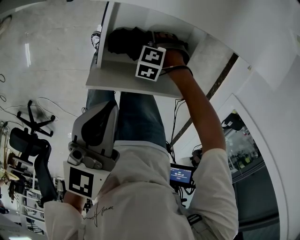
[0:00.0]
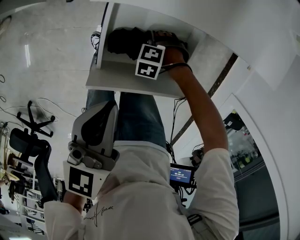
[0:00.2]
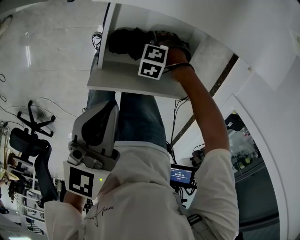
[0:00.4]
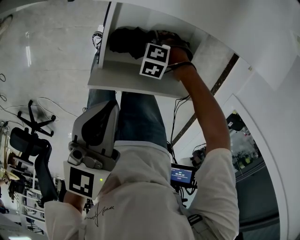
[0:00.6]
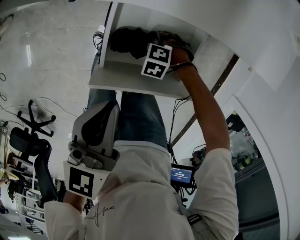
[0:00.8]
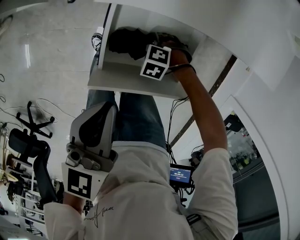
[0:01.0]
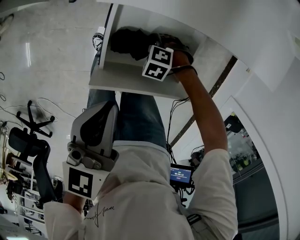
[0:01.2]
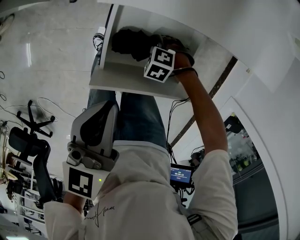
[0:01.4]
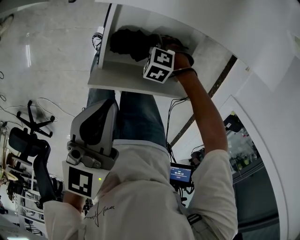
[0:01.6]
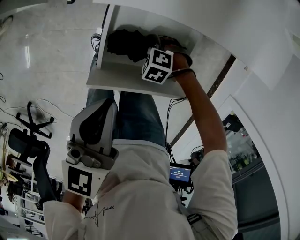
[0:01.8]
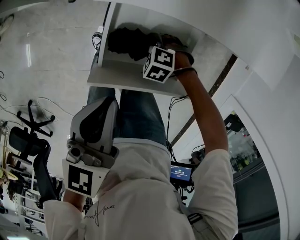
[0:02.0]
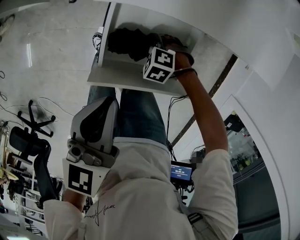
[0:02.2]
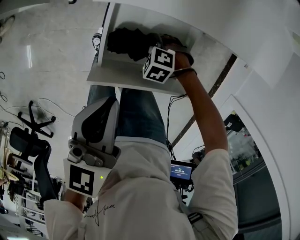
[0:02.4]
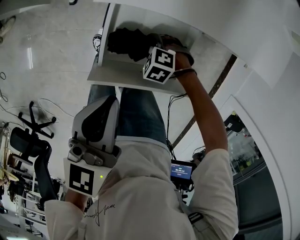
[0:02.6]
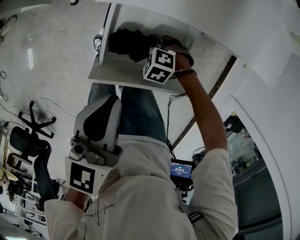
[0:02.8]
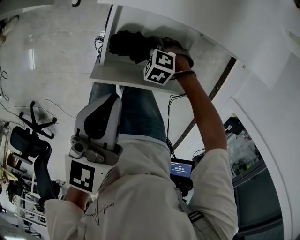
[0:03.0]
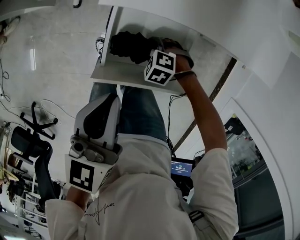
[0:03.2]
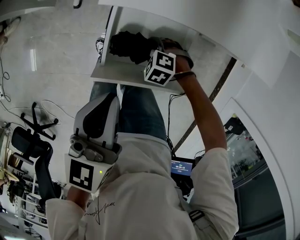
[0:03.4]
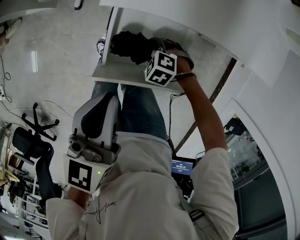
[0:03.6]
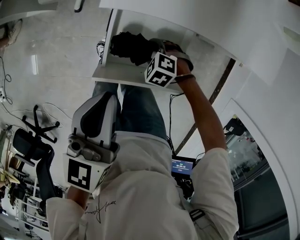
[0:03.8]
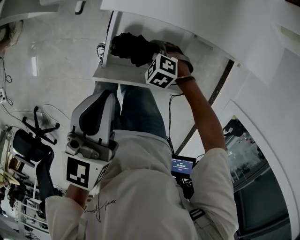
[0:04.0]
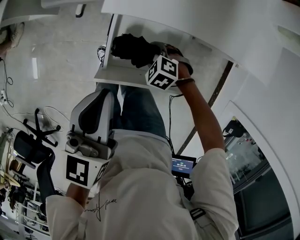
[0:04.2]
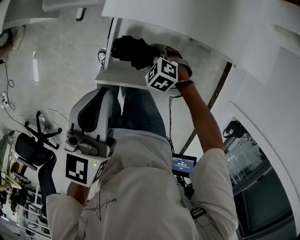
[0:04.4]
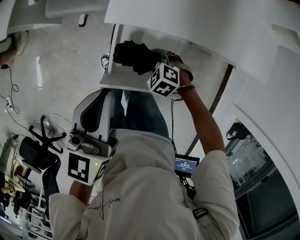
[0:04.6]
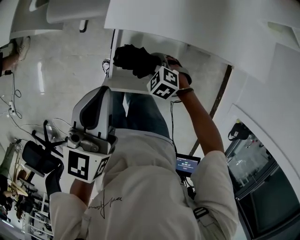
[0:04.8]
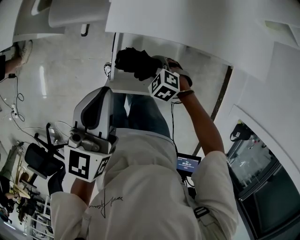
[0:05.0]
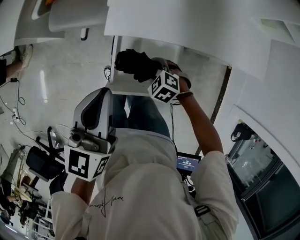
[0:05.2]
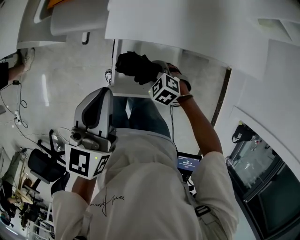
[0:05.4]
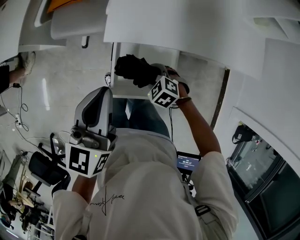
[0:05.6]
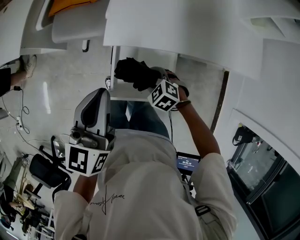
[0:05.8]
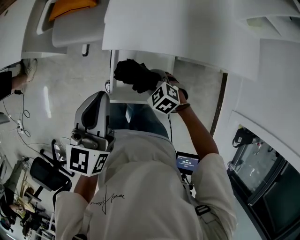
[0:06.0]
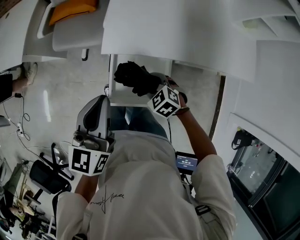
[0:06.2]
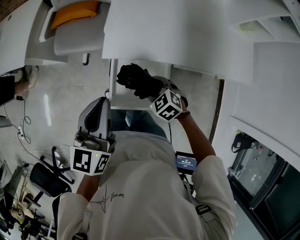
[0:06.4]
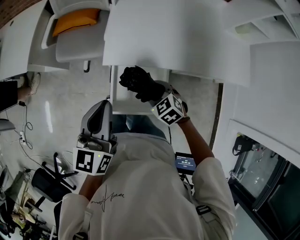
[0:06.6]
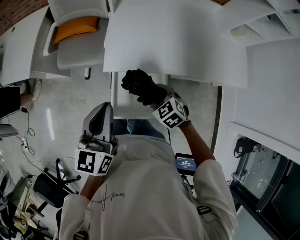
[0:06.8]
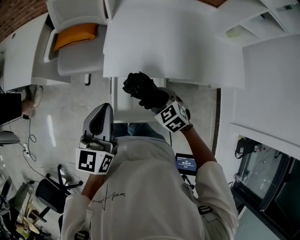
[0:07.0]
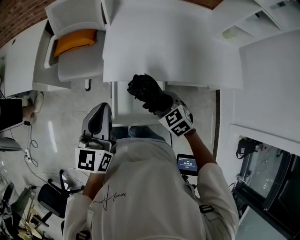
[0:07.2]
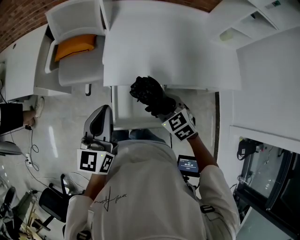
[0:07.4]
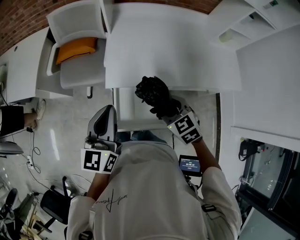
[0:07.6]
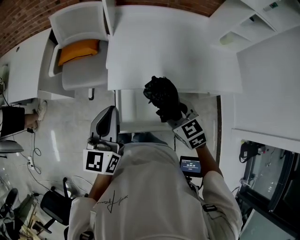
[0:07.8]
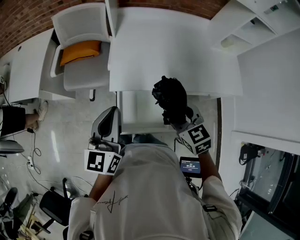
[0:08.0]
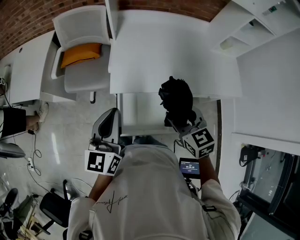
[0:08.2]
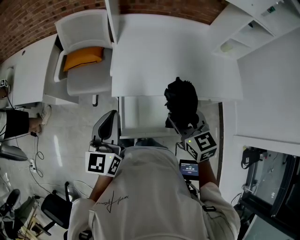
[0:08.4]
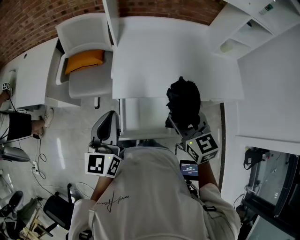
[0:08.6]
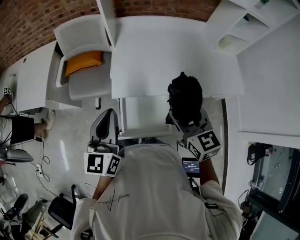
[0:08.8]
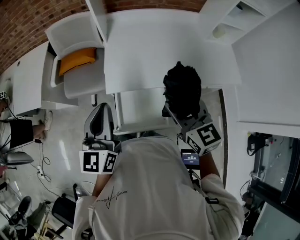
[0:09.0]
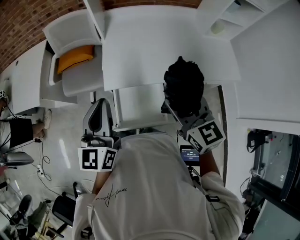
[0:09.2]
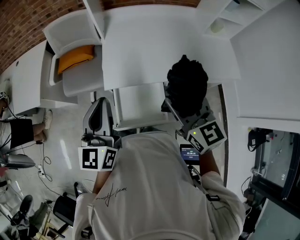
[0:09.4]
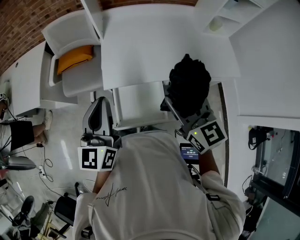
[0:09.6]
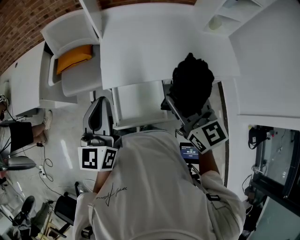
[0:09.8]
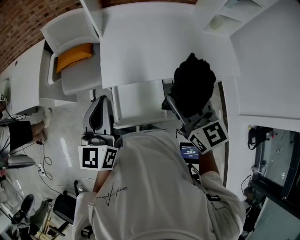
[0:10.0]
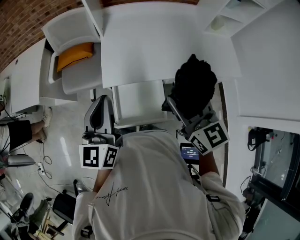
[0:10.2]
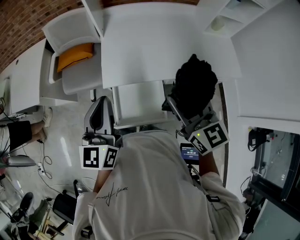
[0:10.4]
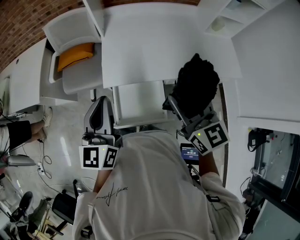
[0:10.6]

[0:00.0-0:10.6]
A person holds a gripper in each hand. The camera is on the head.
0.0 to 3.0 s: The grippers move only a little.
3.0 to 4.6 s: Both grippers travel together upward, about 5 cm.
4.6 to 6.0 s: The left gripper goes roughly 5 cm upward. The right gripper travels upward by approximately 10 cm.
6.0 to 7.6 s: The left gripper ends up about 5 cm from where it was, while the right gripper goes approximately 20 cm upward, and rotates about 30 degrees.
7.6 to 9.0 s: The right gripper is displaced upward by some 15 cm, and swivels roughly 30 degrees; the left gripper shifts some 5 cm upward.
9.0 to 10.6 s: There are only small adjustments of the grippers.

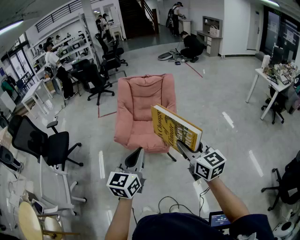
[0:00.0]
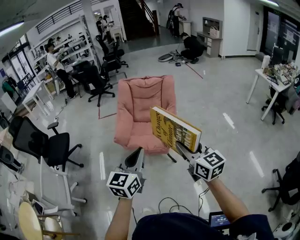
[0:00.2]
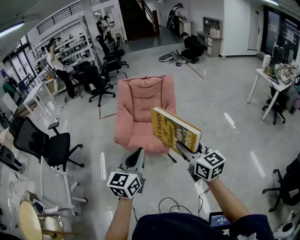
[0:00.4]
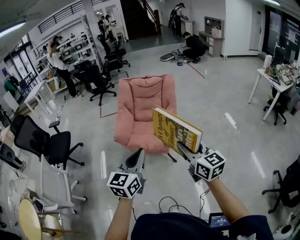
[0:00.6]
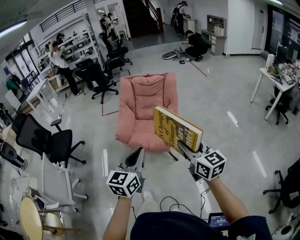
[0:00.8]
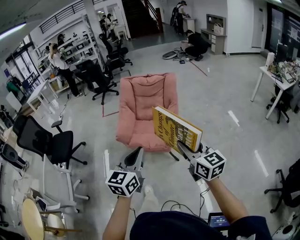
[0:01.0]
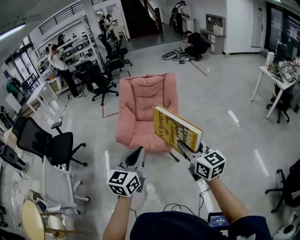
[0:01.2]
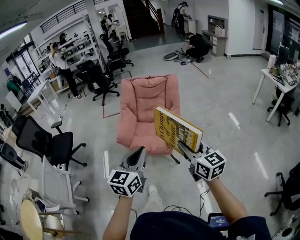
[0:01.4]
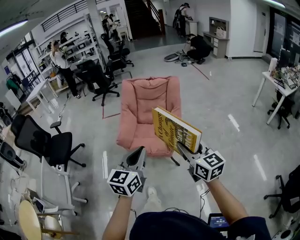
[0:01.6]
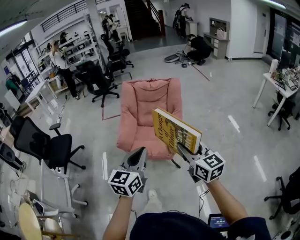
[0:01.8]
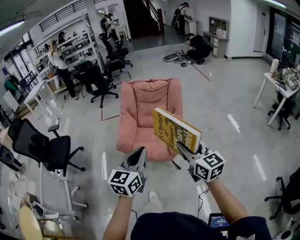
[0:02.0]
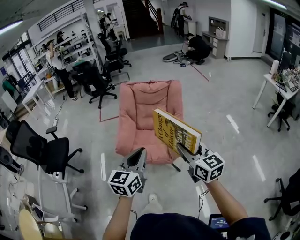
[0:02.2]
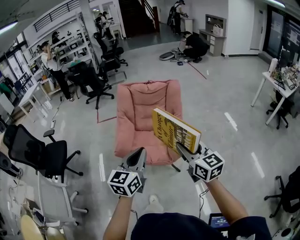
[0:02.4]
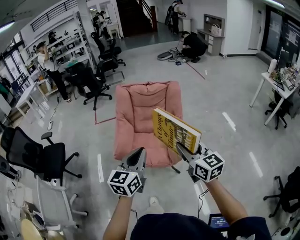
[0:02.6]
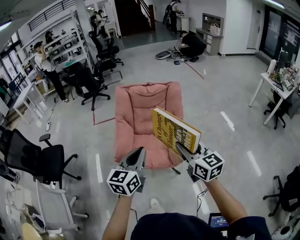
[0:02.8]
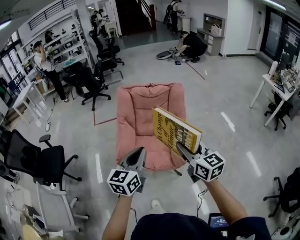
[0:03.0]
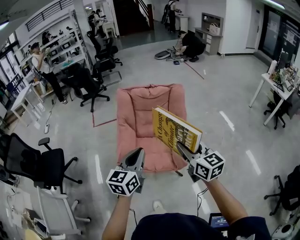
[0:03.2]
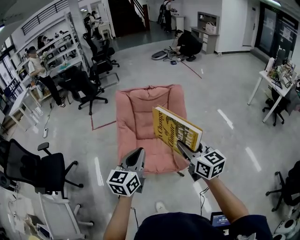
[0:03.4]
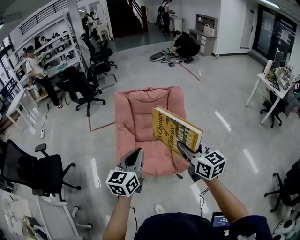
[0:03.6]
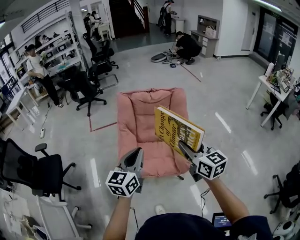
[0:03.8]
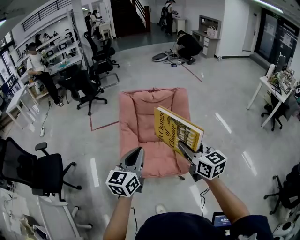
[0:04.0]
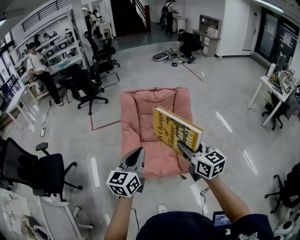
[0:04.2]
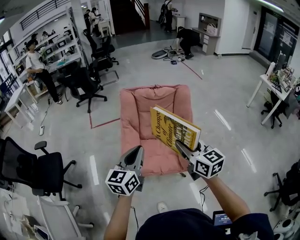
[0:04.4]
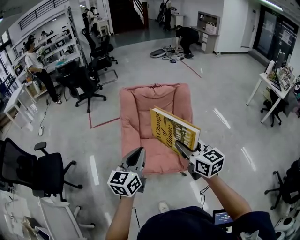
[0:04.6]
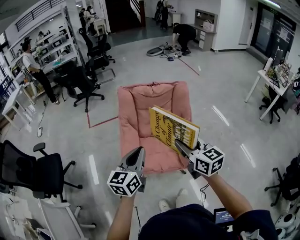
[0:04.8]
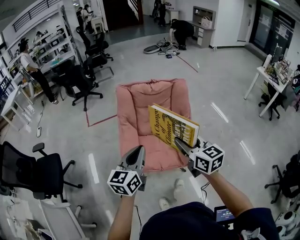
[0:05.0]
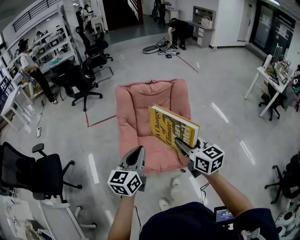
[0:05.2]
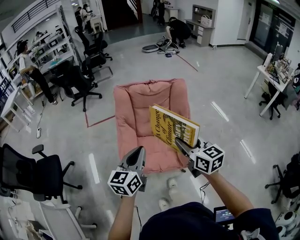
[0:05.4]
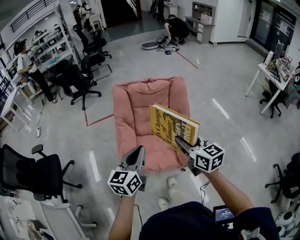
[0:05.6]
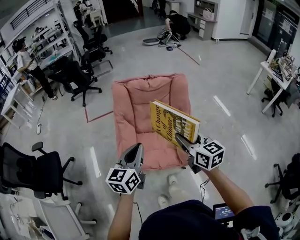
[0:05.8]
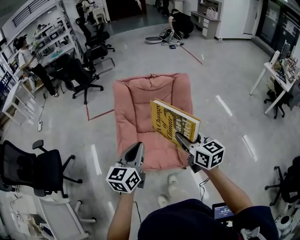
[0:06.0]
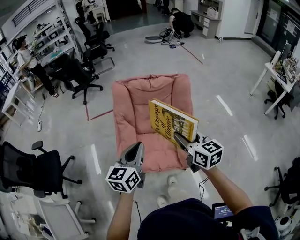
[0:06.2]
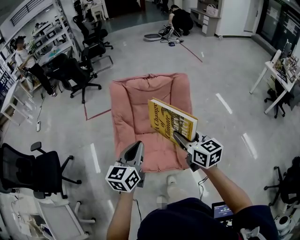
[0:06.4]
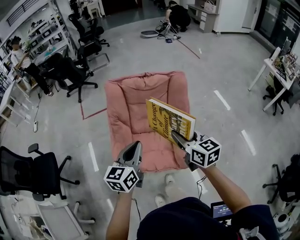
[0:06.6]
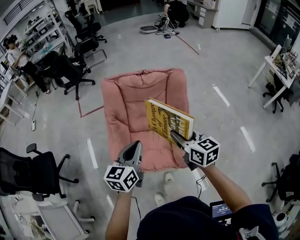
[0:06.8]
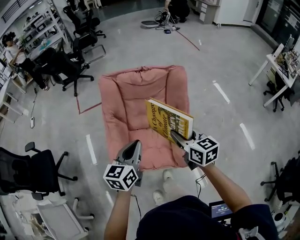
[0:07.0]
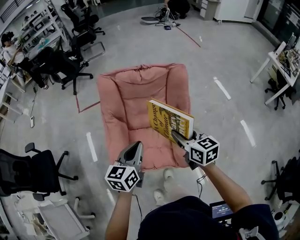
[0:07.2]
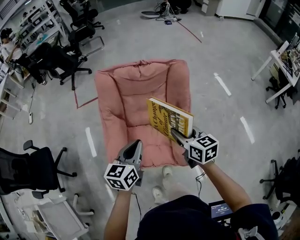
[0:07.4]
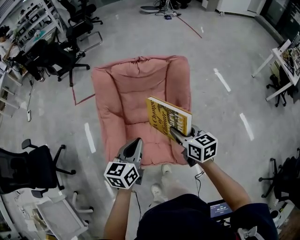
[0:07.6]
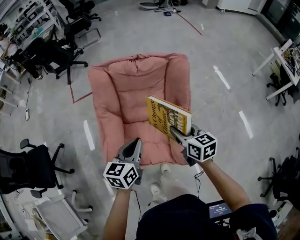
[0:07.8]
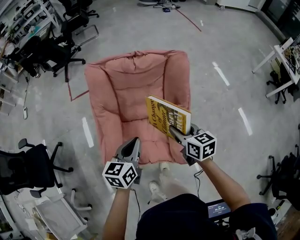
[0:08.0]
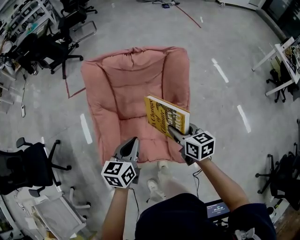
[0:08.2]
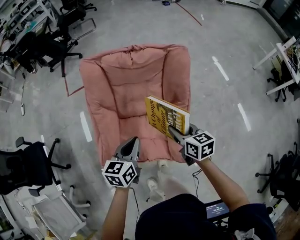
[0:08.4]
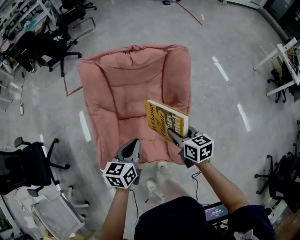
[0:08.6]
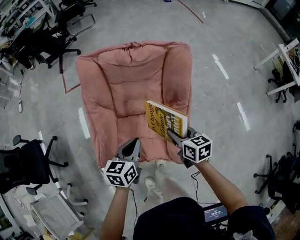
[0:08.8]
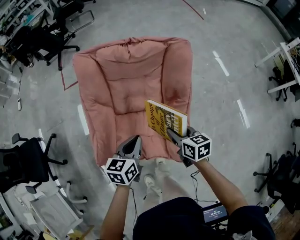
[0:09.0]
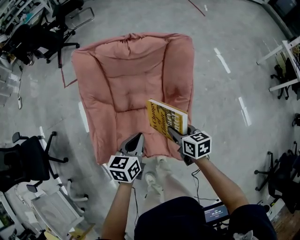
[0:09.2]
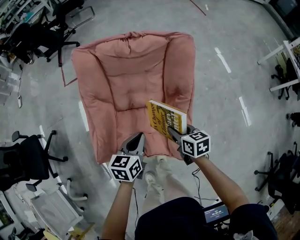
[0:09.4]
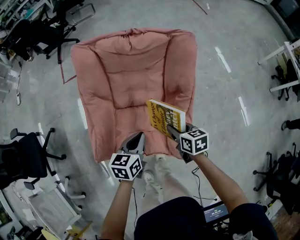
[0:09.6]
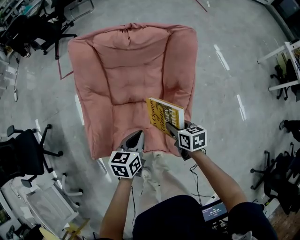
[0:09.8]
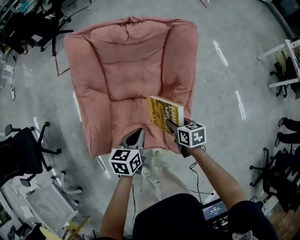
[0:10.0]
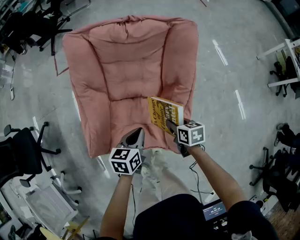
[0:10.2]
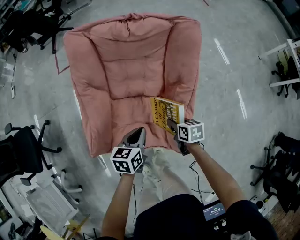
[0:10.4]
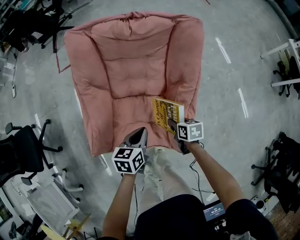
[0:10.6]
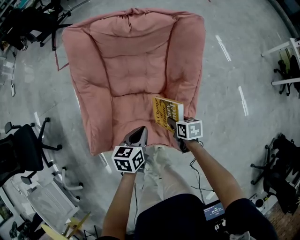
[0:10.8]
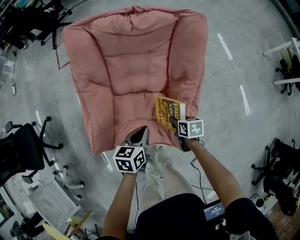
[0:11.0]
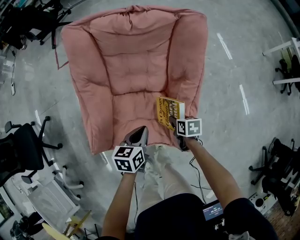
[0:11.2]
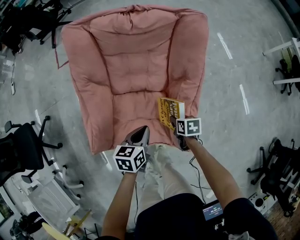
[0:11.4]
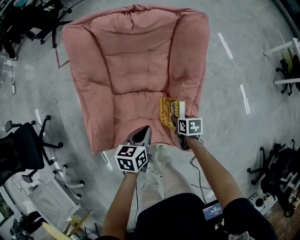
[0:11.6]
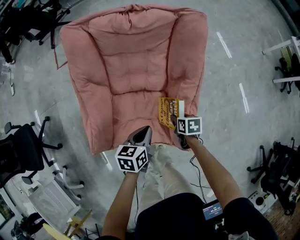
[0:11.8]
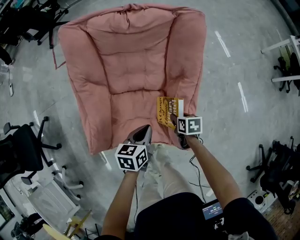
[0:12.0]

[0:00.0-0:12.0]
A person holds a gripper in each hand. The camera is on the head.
0.0 to 1.6 s: The grippers stay close to where they were, moving slightly.
1.6 to 3.0 s: The grippers both shift forward by some 20 cm.
3.0 to 4.4 s: Both grippers move to the left and forward, some 10 cm.
4.4 to 6.0 s: Both grippers travel together forward, roughly 5 cm.
6.0 to 7.6 s: The right gripper goes approximately 20 cm forward and downward. Meanwhile the left gripper moves forward, downward and to the right, approximately 15 cm.
7.6 to 9.0 s: Both grippers move downward, roughly 10 cm.
9.0 to 10.4 s: The grippers both shift downward by approximately 10 cm.
10.4 to 12.0 s: The right gripper heads downward, covering about 5 cm.

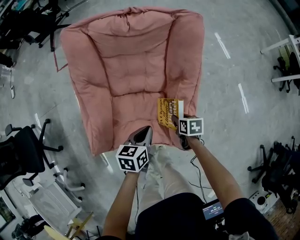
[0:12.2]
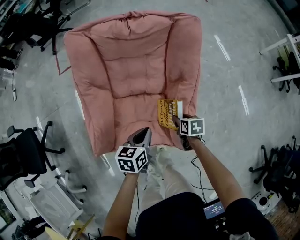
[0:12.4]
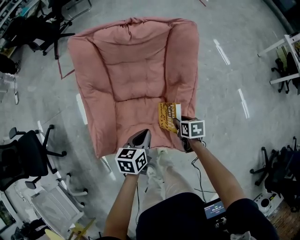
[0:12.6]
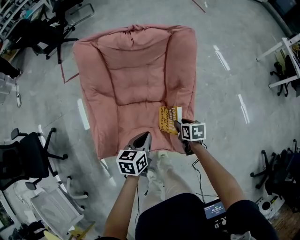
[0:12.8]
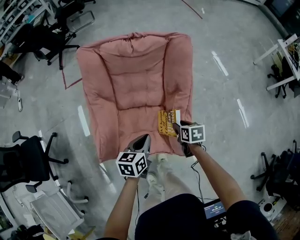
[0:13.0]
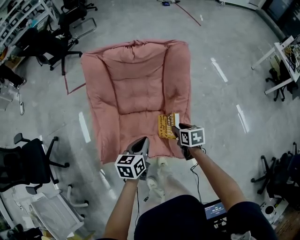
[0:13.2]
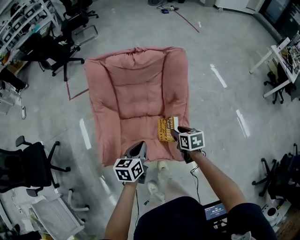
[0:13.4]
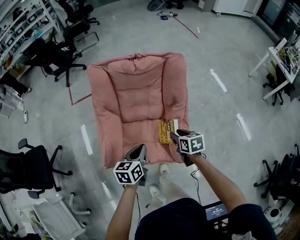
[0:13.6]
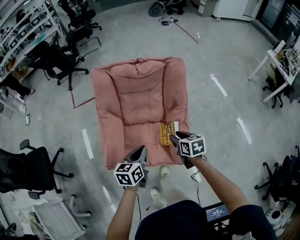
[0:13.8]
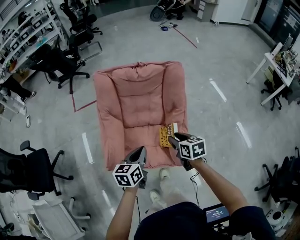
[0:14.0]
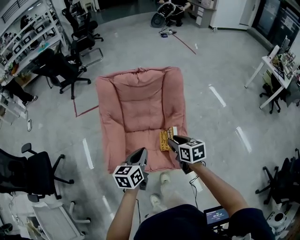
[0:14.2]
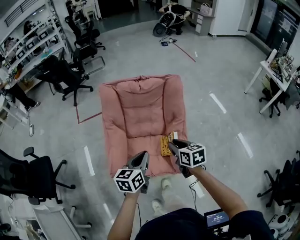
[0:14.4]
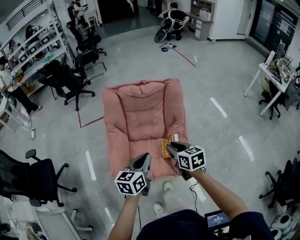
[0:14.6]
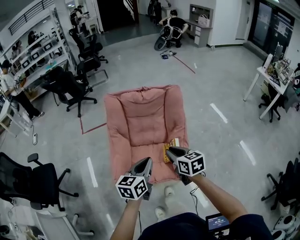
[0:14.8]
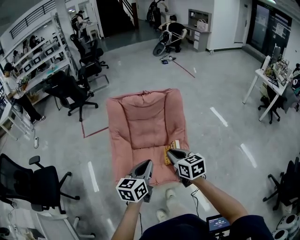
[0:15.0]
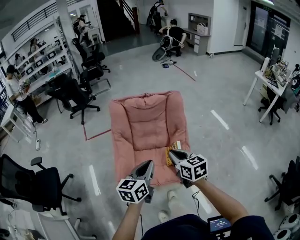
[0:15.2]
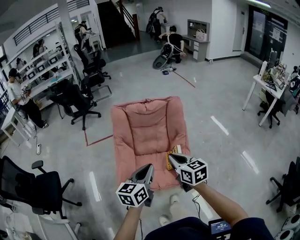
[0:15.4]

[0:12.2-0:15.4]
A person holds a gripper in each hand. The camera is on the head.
12.2 to 13.8 s: The right gripper moves upward, about 20 cm, and swivels roughly 20 degrees; the left gripper moves upward and backward, roughly 15 cm.
13.8 to 15.4 s: The right gripper travels upward, backward and to the left by approximately 25 cm, changes its angle by some 30 degrees, and closes up. Meanwhile the left gripper shifts about 20 cm upward and backward, and turns by about 20 degrees.
